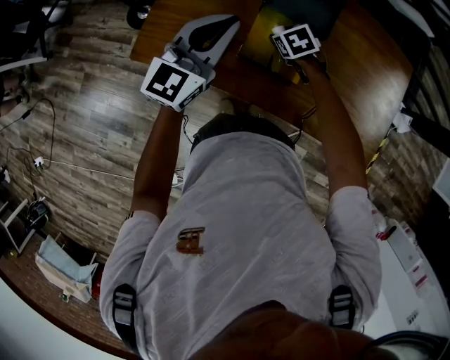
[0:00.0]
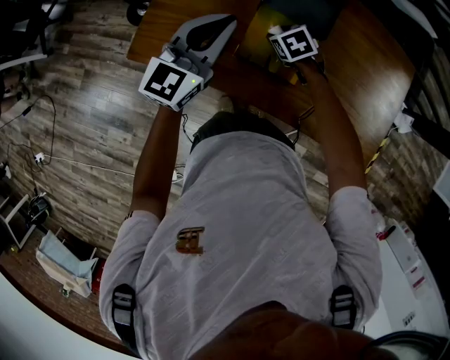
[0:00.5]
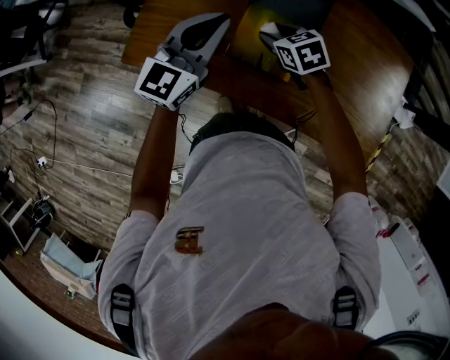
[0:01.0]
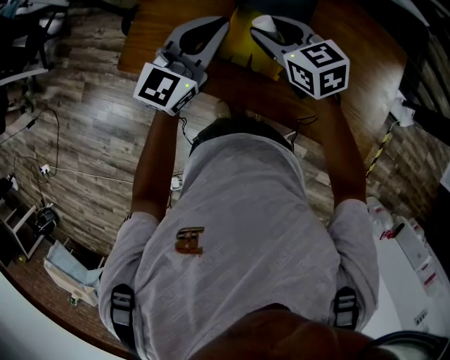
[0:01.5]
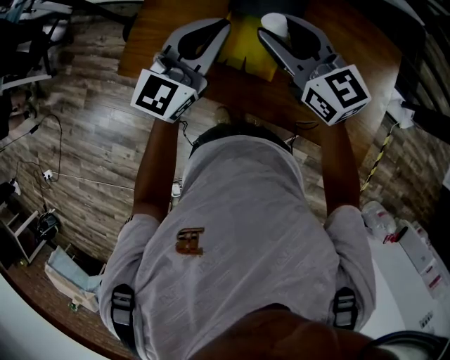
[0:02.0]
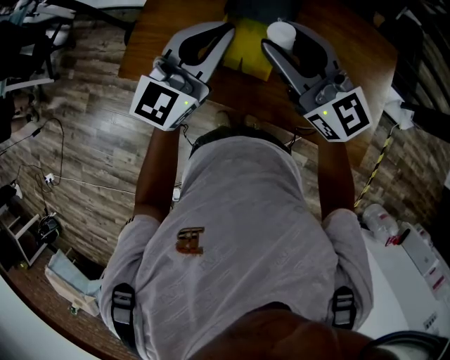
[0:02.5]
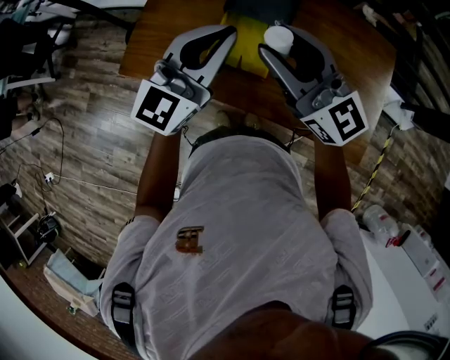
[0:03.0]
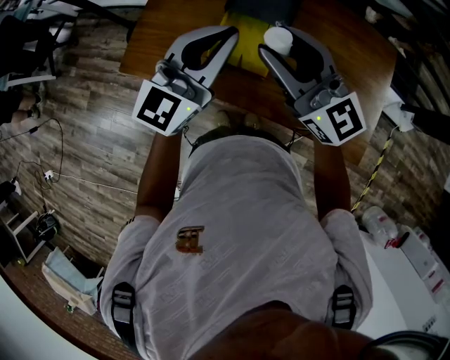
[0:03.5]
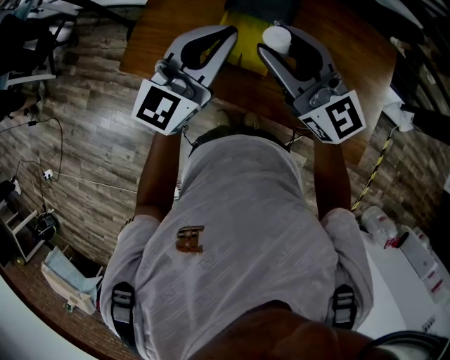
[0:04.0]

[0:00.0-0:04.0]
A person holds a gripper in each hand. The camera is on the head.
0:00.0 to 0:02.0: The right gripper shifts roughly 30 cm upward, and angles its fingers upward, by approximately 60 degrees; the left gripper heads to the right, covering about 10 cm.
0:02.0 to 0:04.0: The right gripper moves backward and upward, some 10 cm; the left gripper is displaced backward by some 5 cm.

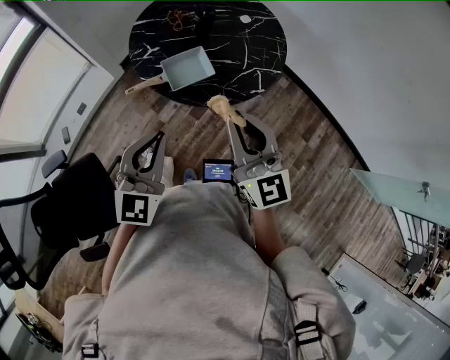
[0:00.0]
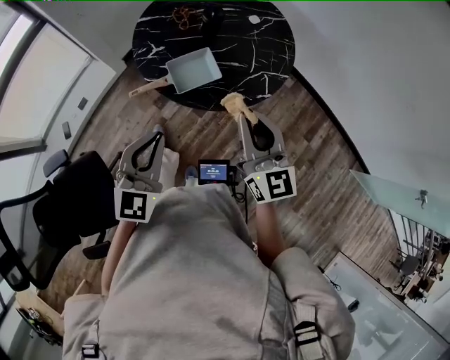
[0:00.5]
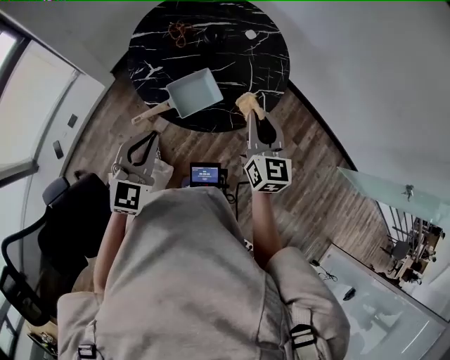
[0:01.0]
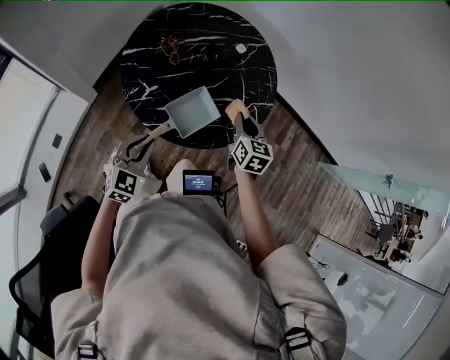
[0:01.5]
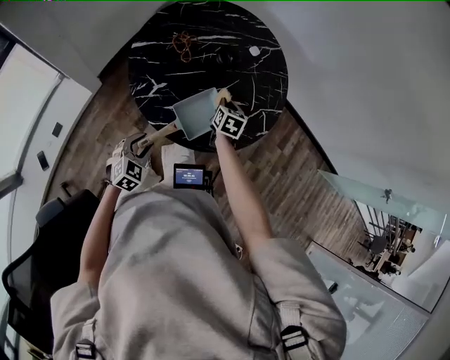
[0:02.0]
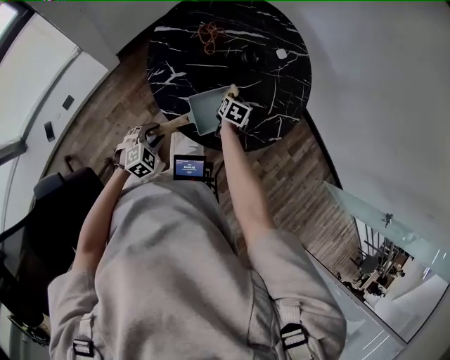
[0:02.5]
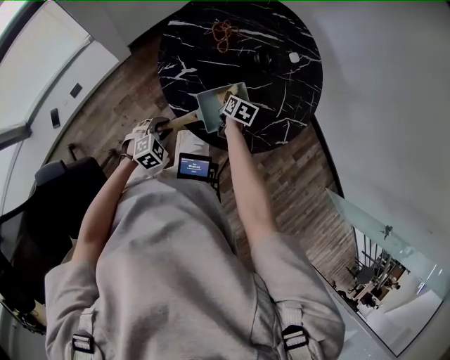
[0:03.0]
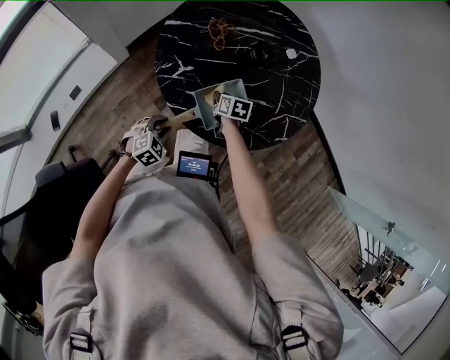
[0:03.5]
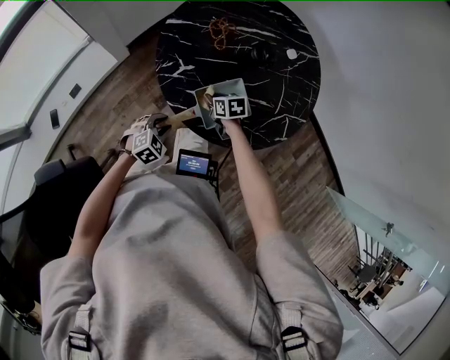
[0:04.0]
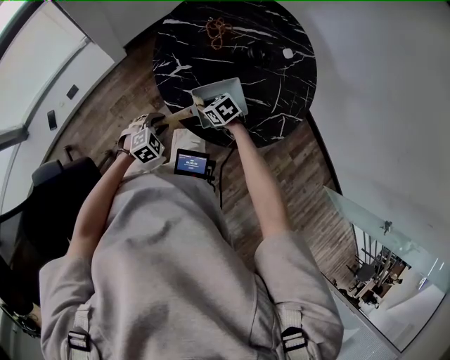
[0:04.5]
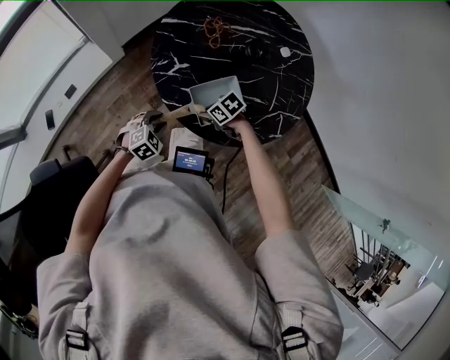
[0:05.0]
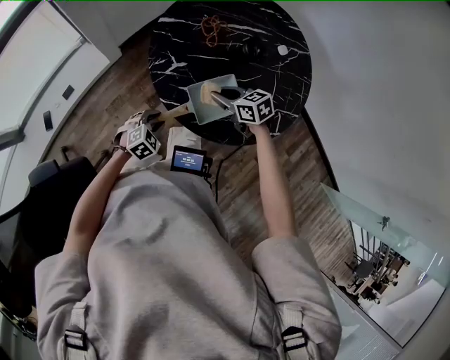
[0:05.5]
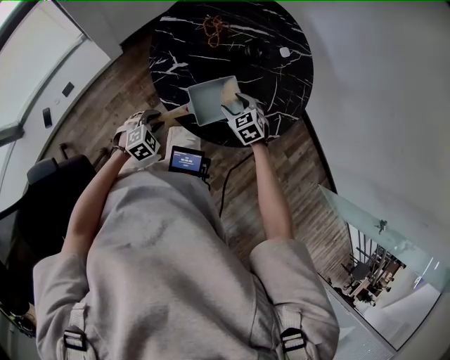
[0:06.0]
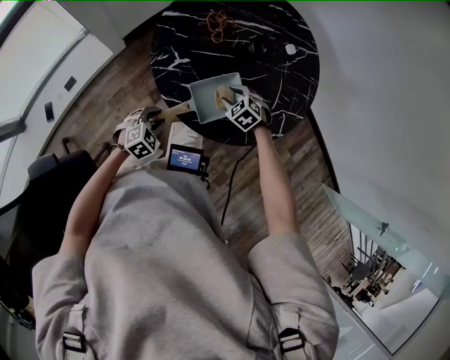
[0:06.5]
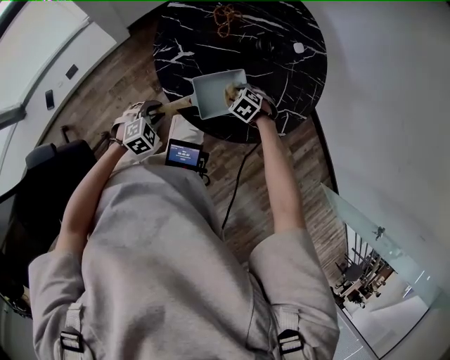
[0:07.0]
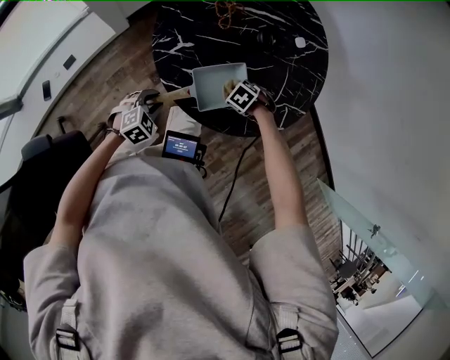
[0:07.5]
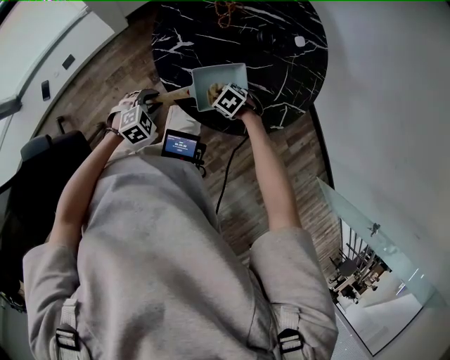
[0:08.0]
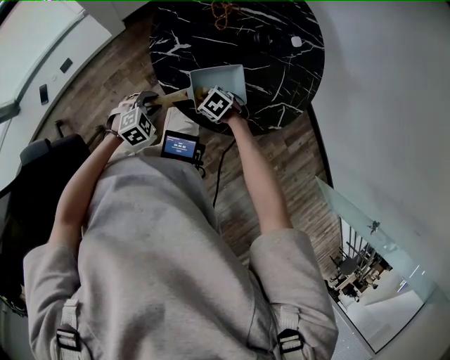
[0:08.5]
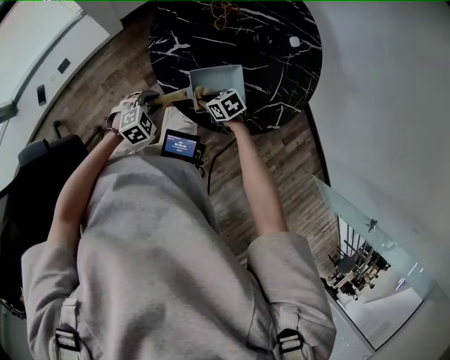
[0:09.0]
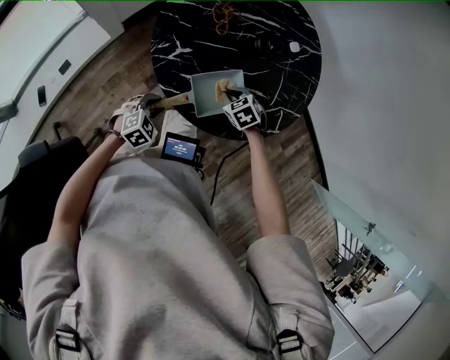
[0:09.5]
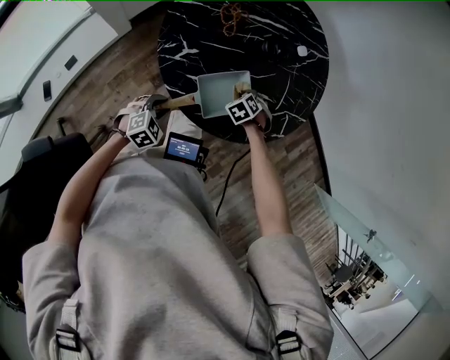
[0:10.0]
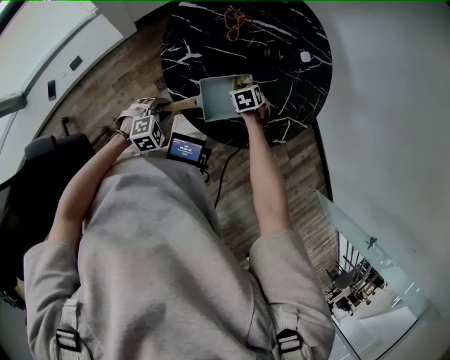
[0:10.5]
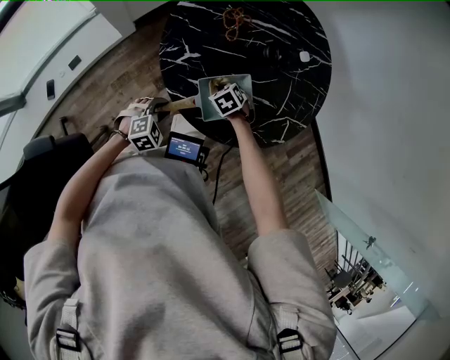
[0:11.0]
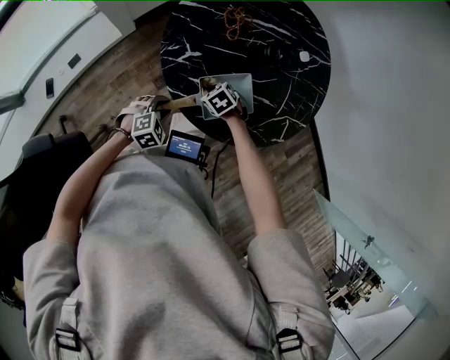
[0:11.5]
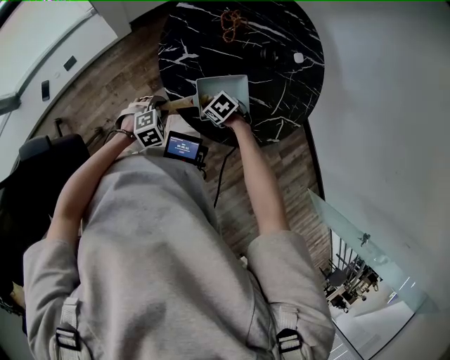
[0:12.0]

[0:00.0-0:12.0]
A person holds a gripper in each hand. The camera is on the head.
0:00.0 to 0:02.0: The right gripper ends up some 50 cm from where it was, and tilts its fingers some 50 degrees downward, while the left gripper is displaced downward by approximately 30 cm, turns by some 40 degrees, and opens its fingers.
0:02.0 to 0:04.0: The left gripper moves downward, approximately 5 cm. The right gripper moves about 15 cm, and turns by roughly 50 degrees.
0:04.0 to 0:06.0: The right gripper ends up about 10 cm from where it was, rotates approximately 40 degrees, and opens its fingers.
0:06.0 to 0:08.0: The right gripper shifts about 10 cm downward, swivels about 40 degrees, and closes its fingers.
0:08.0 to 0:10.0: The right gripper ends up approximately 10 cm from where it was, and turns by roughly 30 degrees.
0:10.0 to 0:12.0: The right gripper shifts by some 15 cm, and changes its angle by roughly 30 degrees.

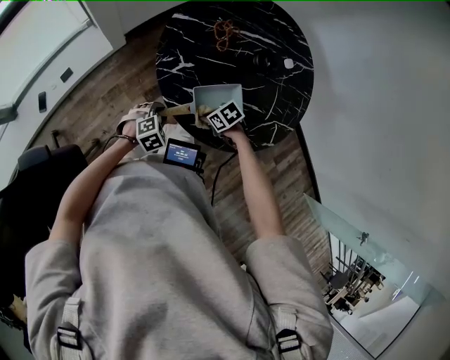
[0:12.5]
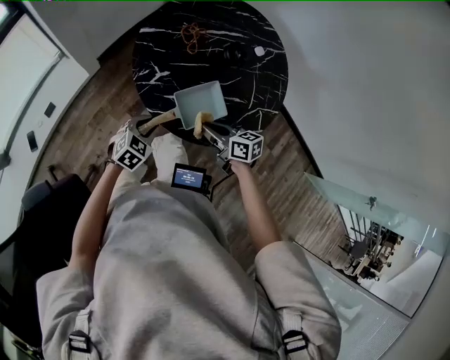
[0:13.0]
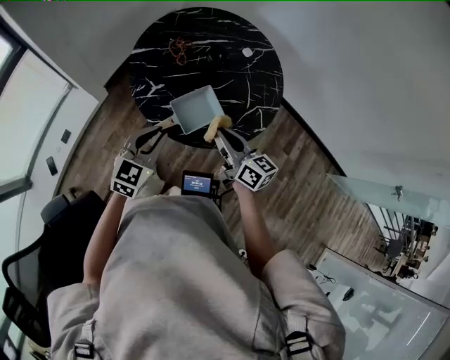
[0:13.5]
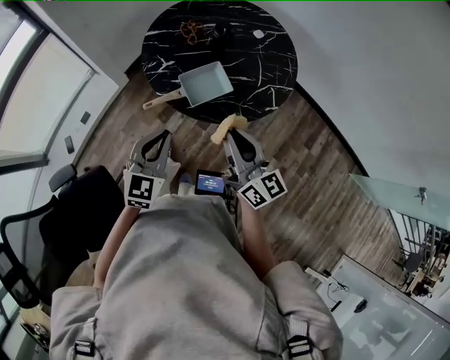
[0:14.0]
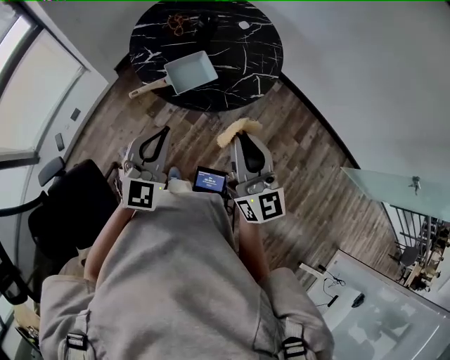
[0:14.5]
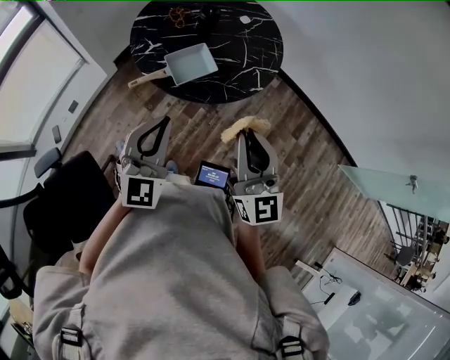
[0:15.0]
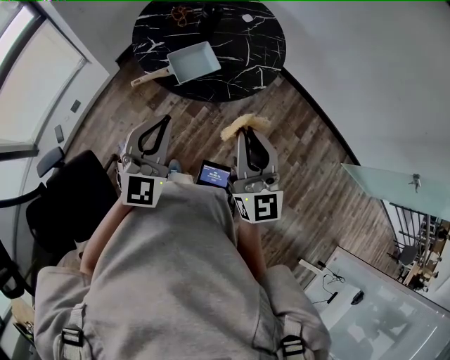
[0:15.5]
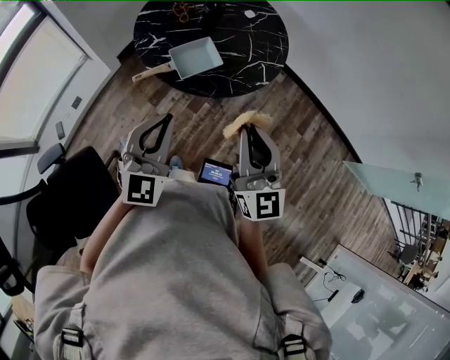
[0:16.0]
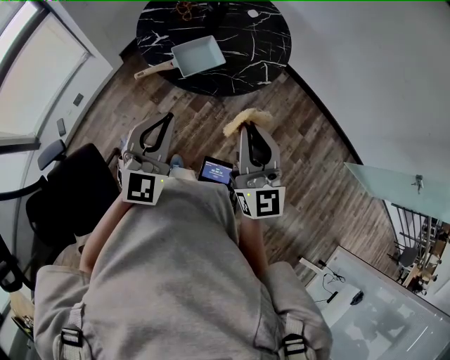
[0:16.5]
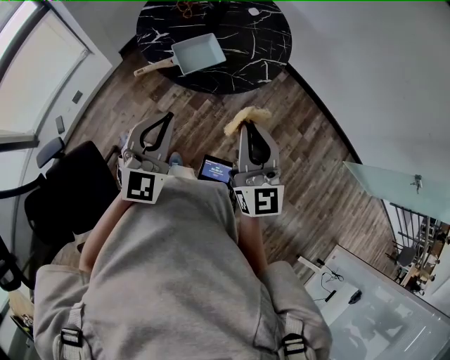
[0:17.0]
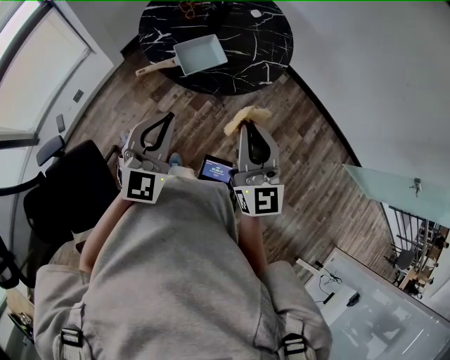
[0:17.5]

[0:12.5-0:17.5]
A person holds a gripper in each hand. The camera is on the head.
0:12.5 to 0:15.0: Both grippers travel together upward, about 40 cm. The right gripper tilts its fingers about 70 degrees upward. Meanwhile the left gripper angles its fingers upward, by roughly 60 degrees, and closes.
0:15.0 to 0:17.5: The grippers stay close to where they were, moving slightly.

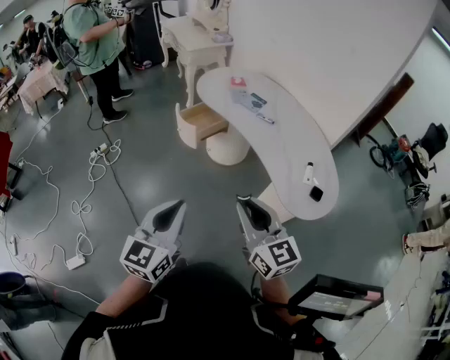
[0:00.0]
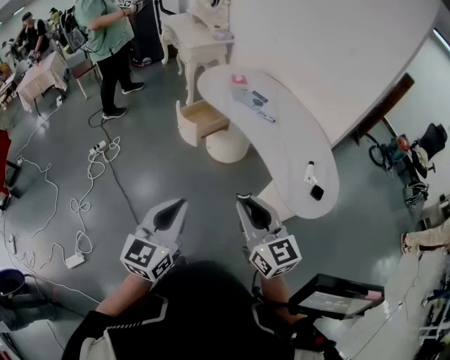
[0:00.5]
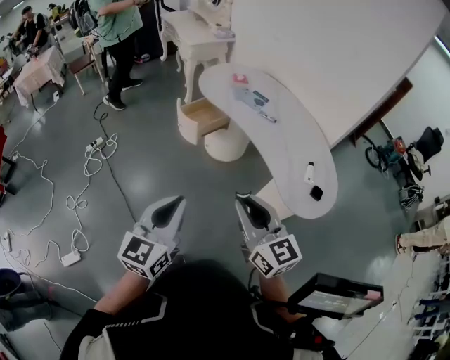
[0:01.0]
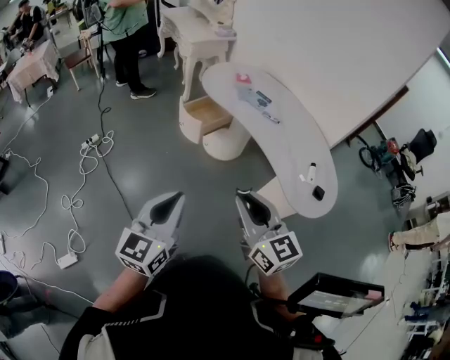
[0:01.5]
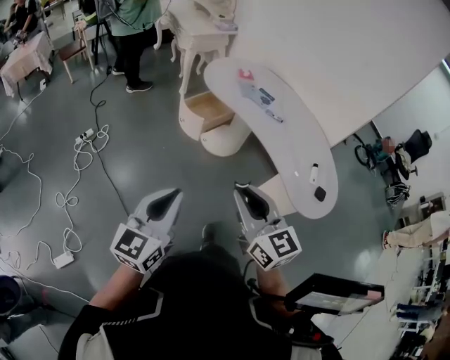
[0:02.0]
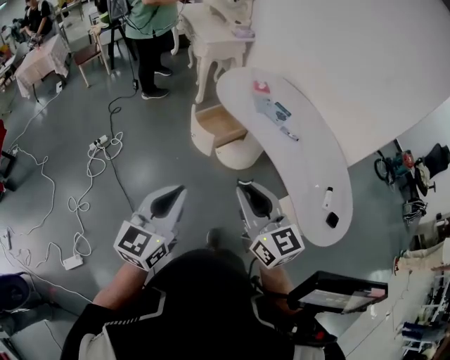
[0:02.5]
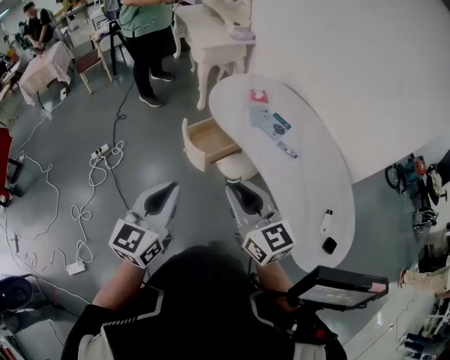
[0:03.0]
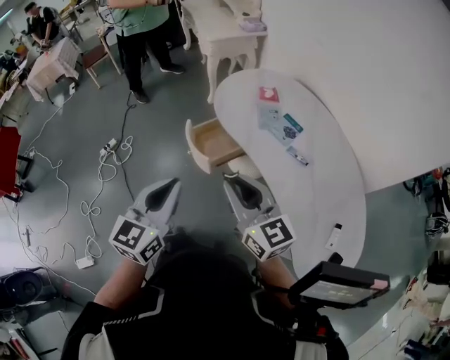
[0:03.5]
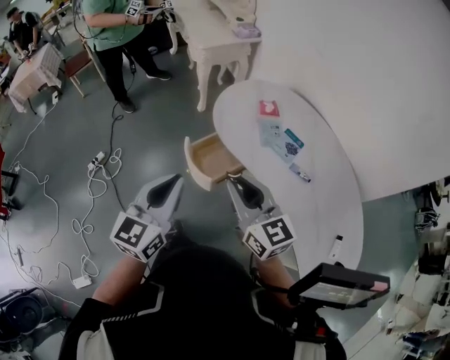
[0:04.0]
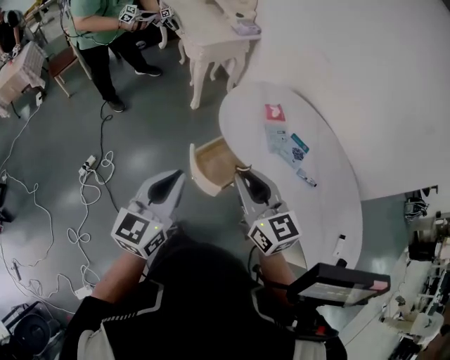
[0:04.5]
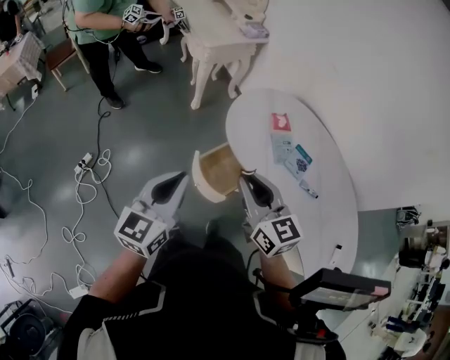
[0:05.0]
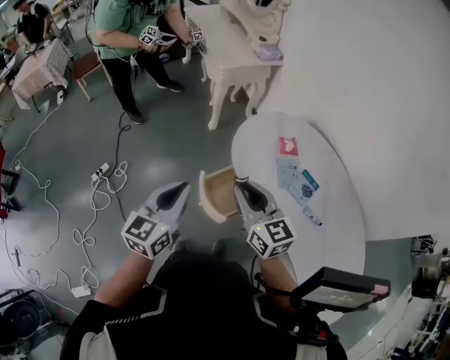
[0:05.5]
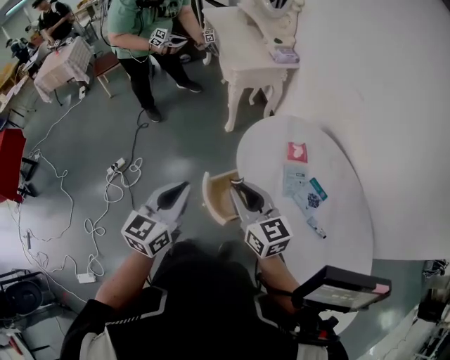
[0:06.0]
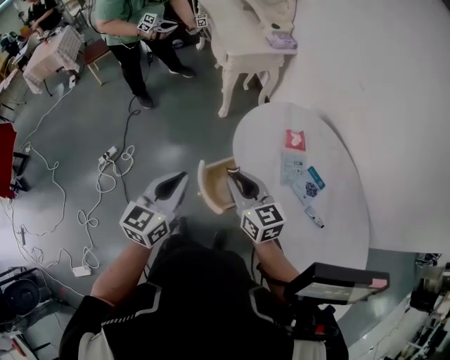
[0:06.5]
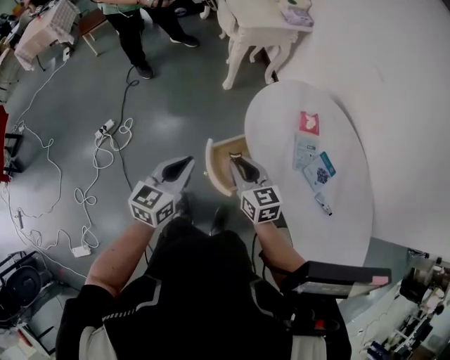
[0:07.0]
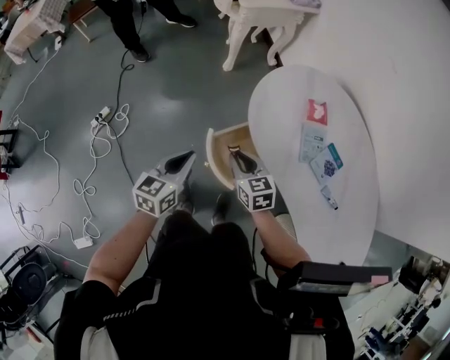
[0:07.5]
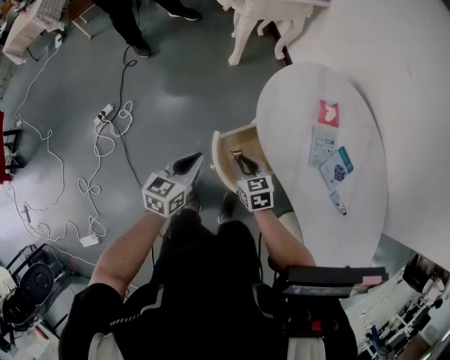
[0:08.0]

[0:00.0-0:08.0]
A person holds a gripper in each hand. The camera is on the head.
0:00.0 to 0:02.0: The grippers both shift to the left and forward by some 15 cm.
0:02.0 to 0:04.0: The two grippers go roughly 40 cm forward.
0:04.0 to 0:06.0: The two grippers go some 15 cm forward.
0:06.0 to 0:08.0: Both grippers move downward, roughly 25 cm. The right gripper tilts its fingers approximately 30 degrees downward. Meanwhile the left gripper swivels approximately 20 degrees.
